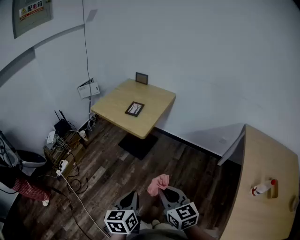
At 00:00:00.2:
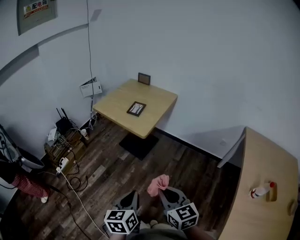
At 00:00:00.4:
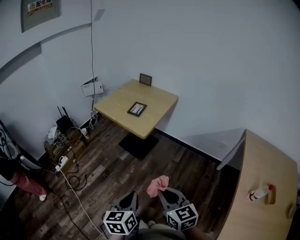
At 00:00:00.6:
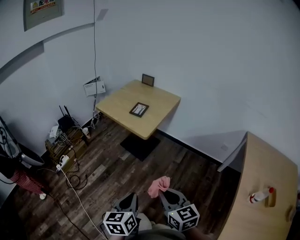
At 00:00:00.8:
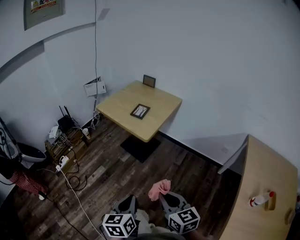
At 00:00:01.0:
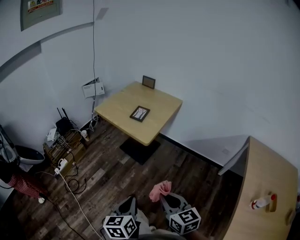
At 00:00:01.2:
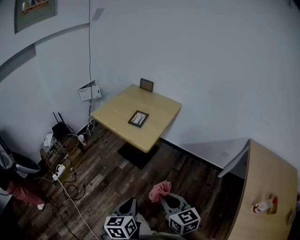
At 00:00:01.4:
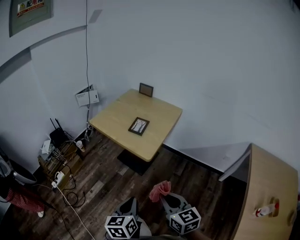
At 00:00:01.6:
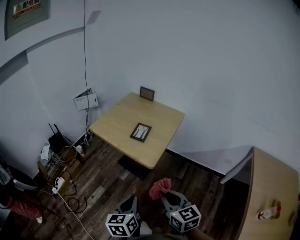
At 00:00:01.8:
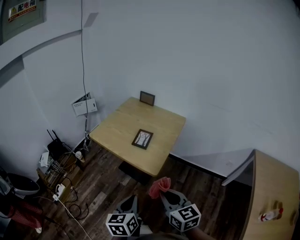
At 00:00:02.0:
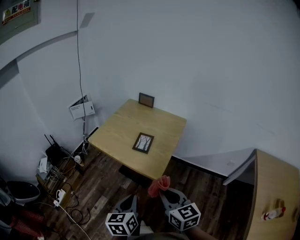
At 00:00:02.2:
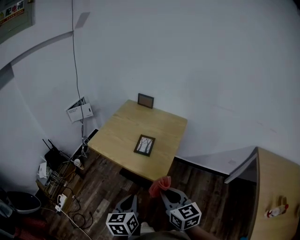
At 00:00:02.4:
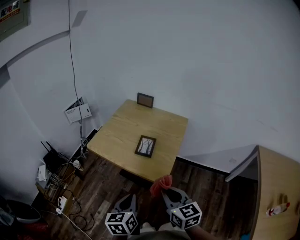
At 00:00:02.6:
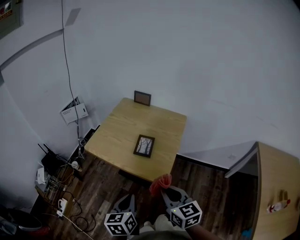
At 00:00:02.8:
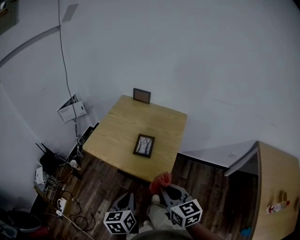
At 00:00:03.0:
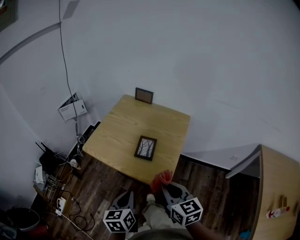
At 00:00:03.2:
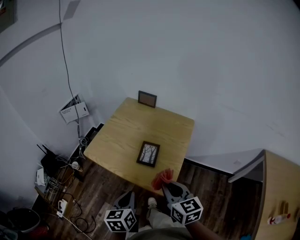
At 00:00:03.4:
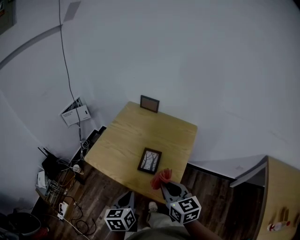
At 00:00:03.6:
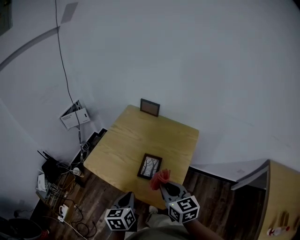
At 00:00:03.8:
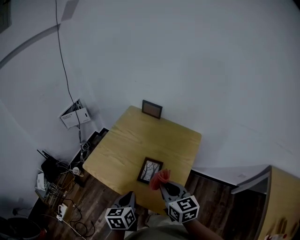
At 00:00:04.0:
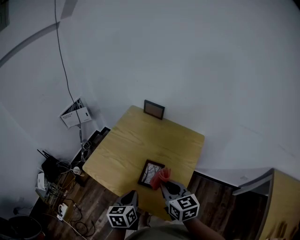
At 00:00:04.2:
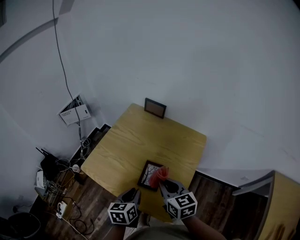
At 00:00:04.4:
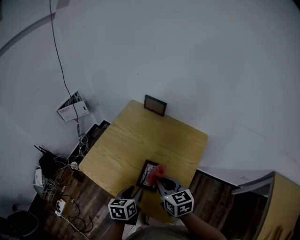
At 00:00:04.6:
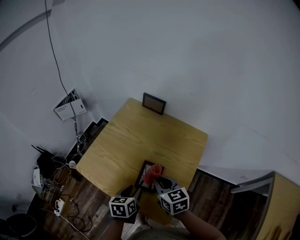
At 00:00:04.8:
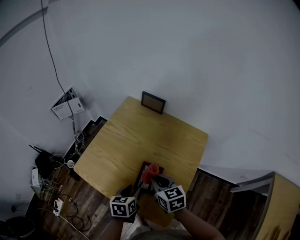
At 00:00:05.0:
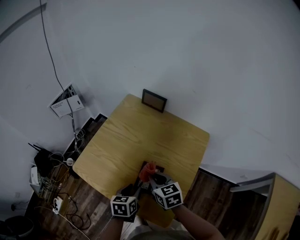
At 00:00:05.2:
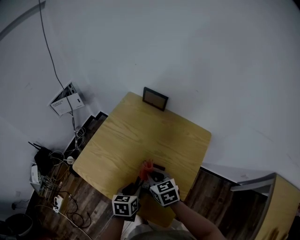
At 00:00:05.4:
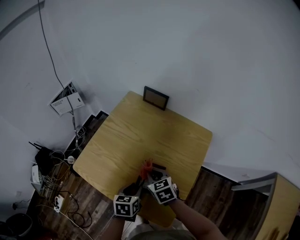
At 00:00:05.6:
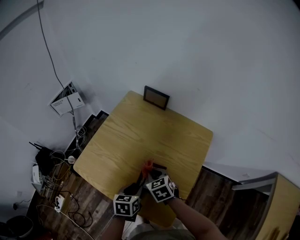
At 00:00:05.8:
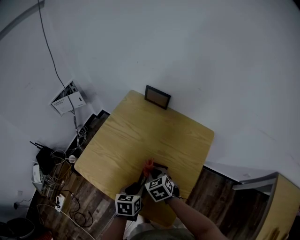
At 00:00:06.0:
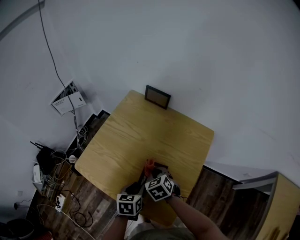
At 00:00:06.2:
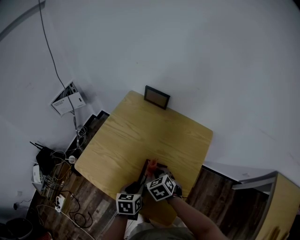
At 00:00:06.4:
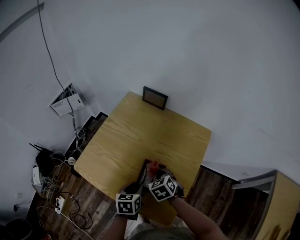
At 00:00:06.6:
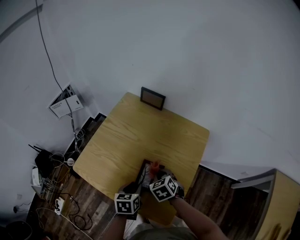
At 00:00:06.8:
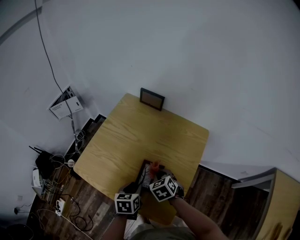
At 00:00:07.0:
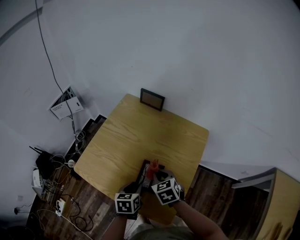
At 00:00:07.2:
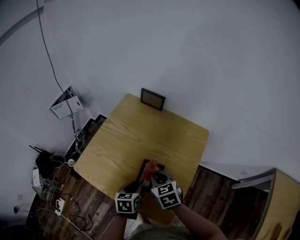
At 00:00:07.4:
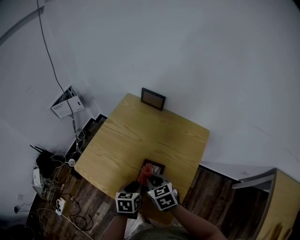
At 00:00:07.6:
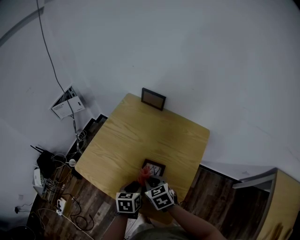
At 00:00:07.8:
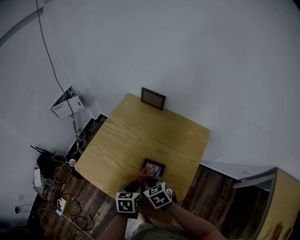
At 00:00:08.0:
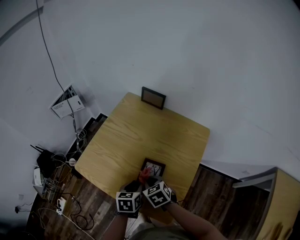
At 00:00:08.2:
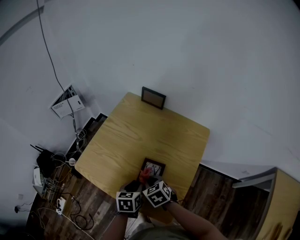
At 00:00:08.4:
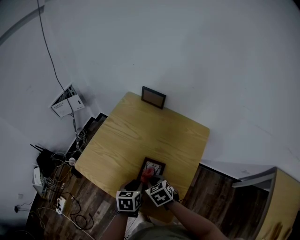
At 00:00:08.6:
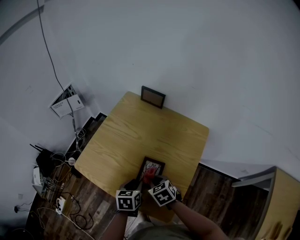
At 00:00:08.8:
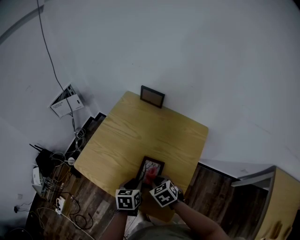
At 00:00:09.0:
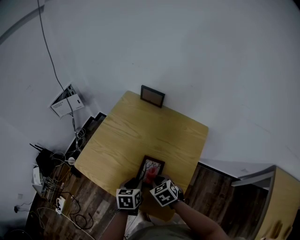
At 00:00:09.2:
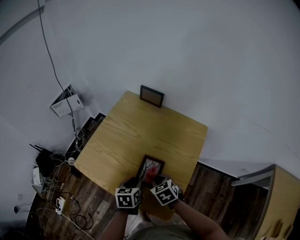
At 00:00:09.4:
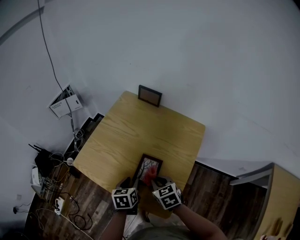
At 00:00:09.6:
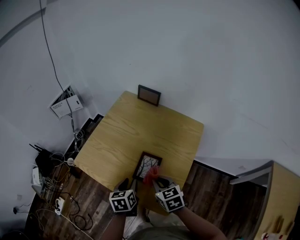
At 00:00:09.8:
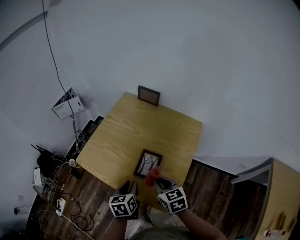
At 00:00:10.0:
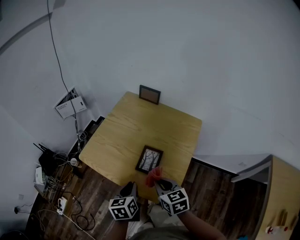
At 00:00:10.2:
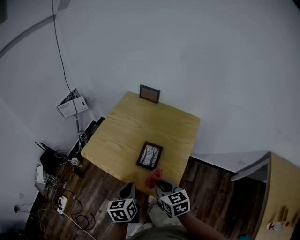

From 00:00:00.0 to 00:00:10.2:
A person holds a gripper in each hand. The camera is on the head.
From 00:00:00.0 to 00:00:01.4: Both grippers move forward, roughly 15 cm.
From 00:00:01.4 to 00:00:03.0: Both grippers travel together forward, about 30 cm.
From 00:00:03.0 to 00:00:04.4: The left gripper travels forward and downward by about 25 cm, and opens its fingers, while the right gripper moves forward, roughly 25 cm.
From 00:00:04.4 to 00:00:05.8: The left gripper is displaced downward by some 5 cm. Meanwhile the right gripper is displaced downward and forward by some 15 cm, and swivels roughly 30 degrees.
From 00:00:05.8 to 00:00:07.2: The right gripper moves upward, about 5 cm.
From 00:00:07.2 to 00:00:08.8: The right gripper is displaced downward by approximately 5 cm.
From 00:00:08.8 to 00:00:10.2: The right gripper goes some 15 cm backward and upward, and changes its angle by some 30 degrees. Meanwhile the left gripper moves backward, upward and to the left, about 15 cm, and closes up.

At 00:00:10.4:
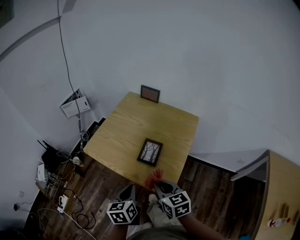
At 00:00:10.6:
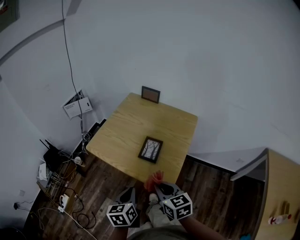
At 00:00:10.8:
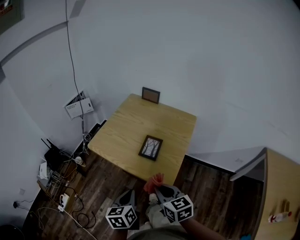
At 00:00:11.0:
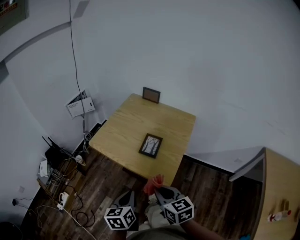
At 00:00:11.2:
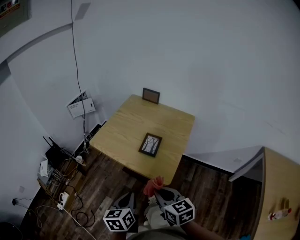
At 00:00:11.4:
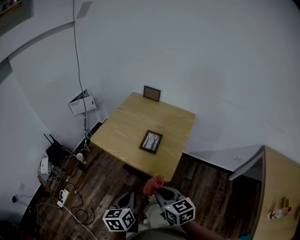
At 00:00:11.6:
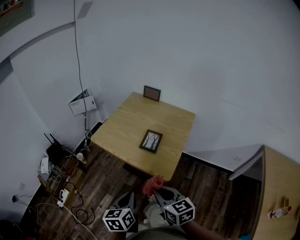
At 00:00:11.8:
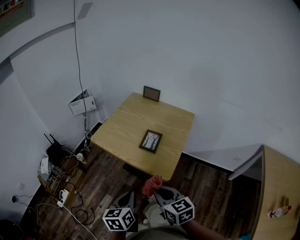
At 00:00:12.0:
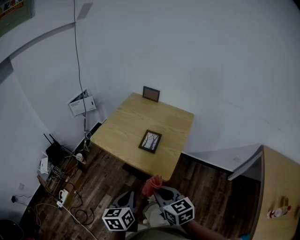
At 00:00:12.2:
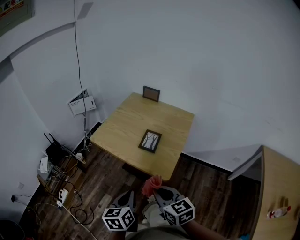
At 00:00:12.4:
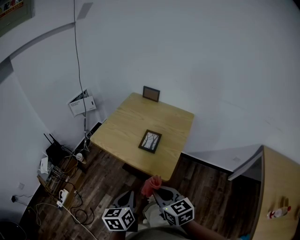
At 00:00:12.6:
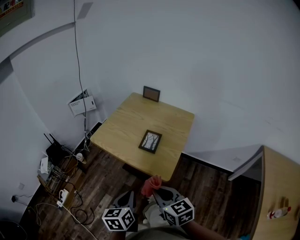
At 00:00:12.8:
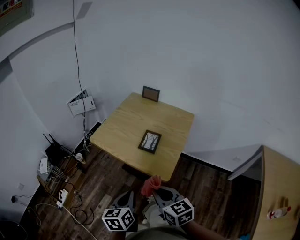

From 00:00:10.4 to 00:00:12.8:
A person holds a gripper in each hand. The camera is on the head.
From 00:00:10.4 to 00:00:11.6: The grippers both shift backward by some 15 cm.
From 00:00:11.6 to 00:00:12.8: Neither gripper changes place.

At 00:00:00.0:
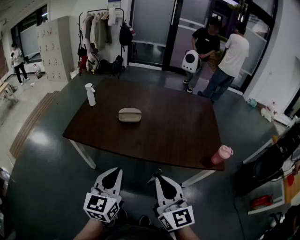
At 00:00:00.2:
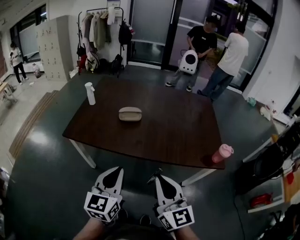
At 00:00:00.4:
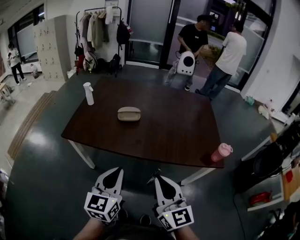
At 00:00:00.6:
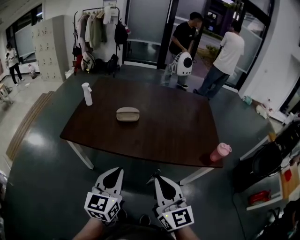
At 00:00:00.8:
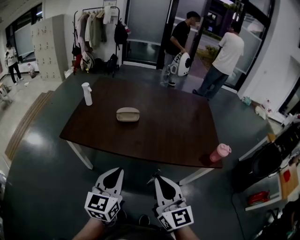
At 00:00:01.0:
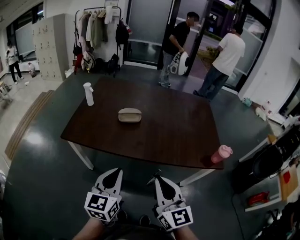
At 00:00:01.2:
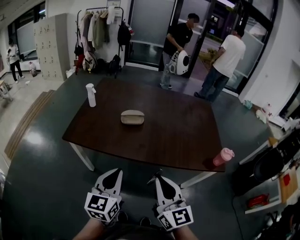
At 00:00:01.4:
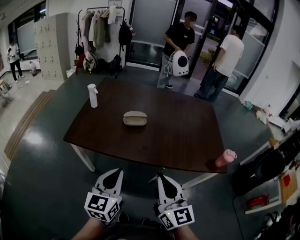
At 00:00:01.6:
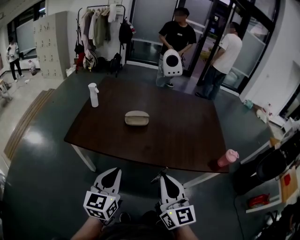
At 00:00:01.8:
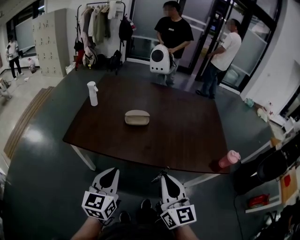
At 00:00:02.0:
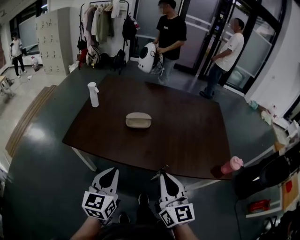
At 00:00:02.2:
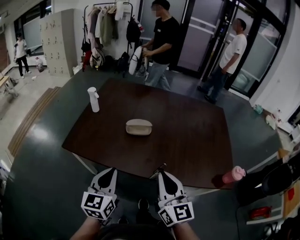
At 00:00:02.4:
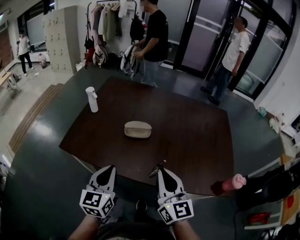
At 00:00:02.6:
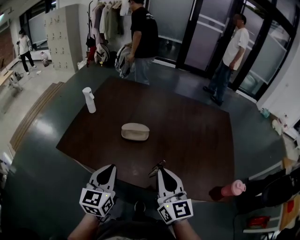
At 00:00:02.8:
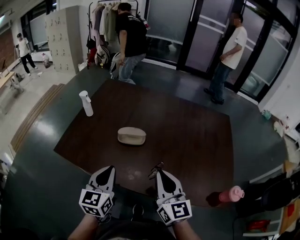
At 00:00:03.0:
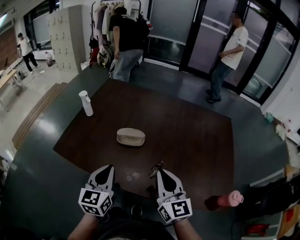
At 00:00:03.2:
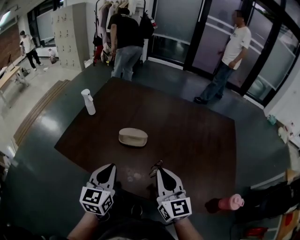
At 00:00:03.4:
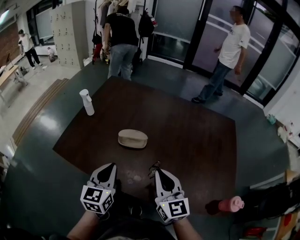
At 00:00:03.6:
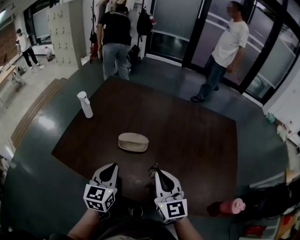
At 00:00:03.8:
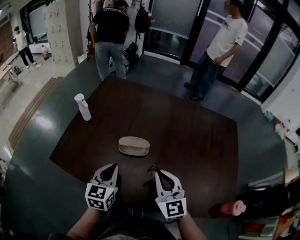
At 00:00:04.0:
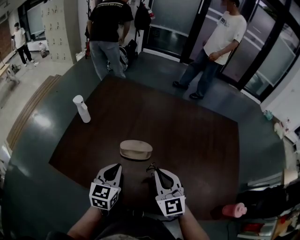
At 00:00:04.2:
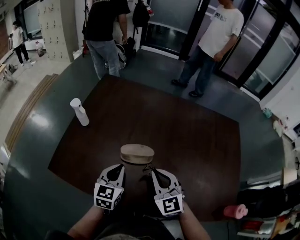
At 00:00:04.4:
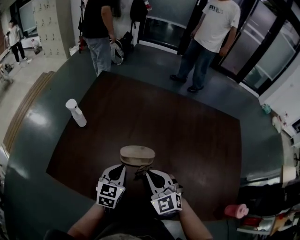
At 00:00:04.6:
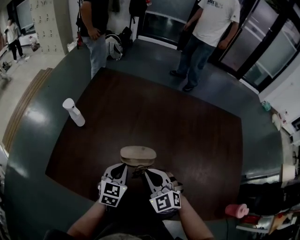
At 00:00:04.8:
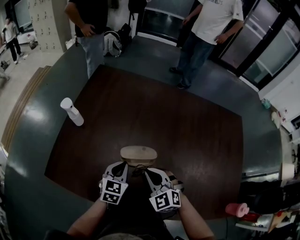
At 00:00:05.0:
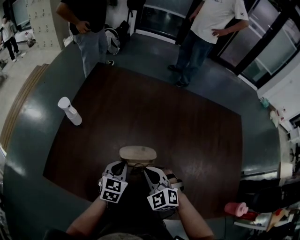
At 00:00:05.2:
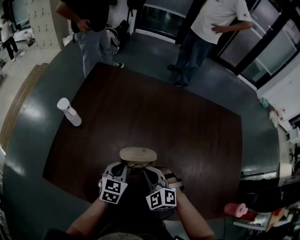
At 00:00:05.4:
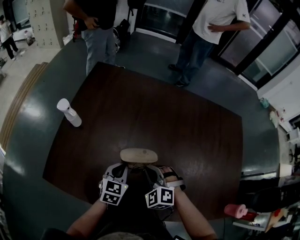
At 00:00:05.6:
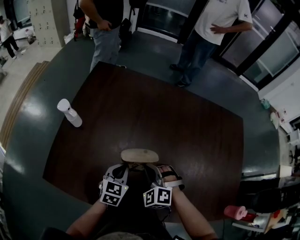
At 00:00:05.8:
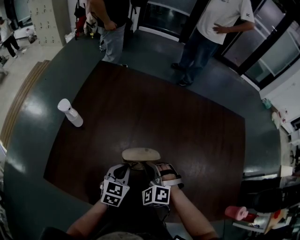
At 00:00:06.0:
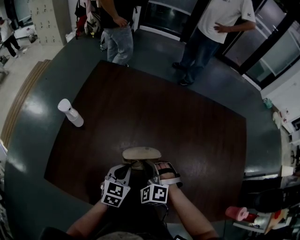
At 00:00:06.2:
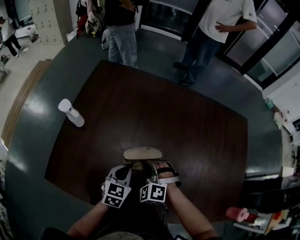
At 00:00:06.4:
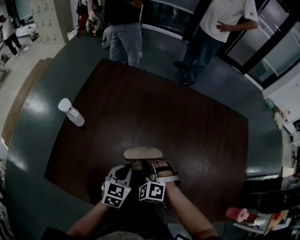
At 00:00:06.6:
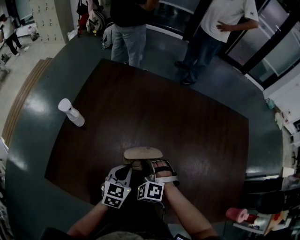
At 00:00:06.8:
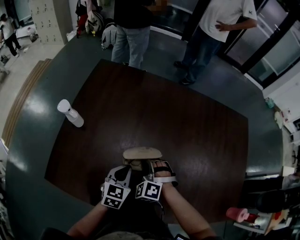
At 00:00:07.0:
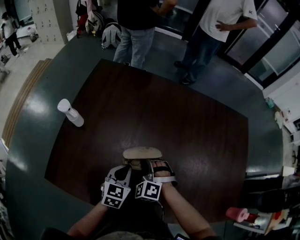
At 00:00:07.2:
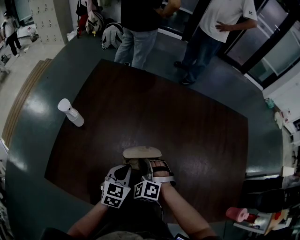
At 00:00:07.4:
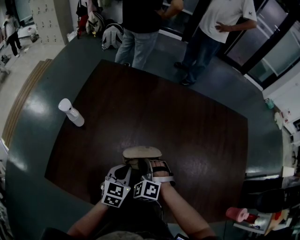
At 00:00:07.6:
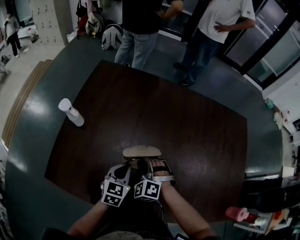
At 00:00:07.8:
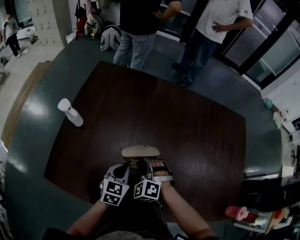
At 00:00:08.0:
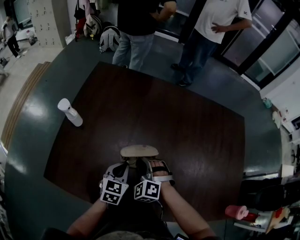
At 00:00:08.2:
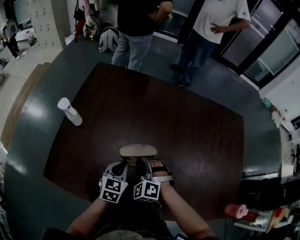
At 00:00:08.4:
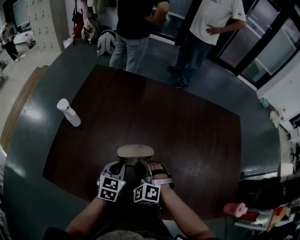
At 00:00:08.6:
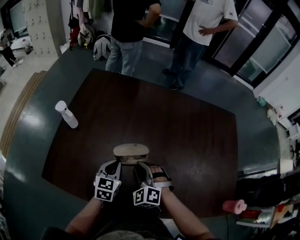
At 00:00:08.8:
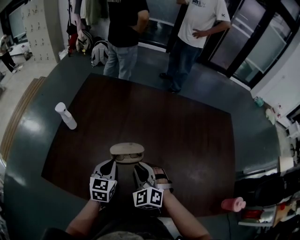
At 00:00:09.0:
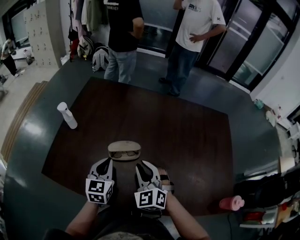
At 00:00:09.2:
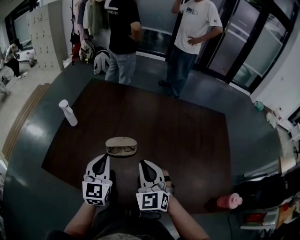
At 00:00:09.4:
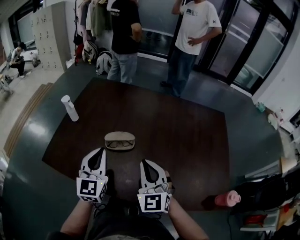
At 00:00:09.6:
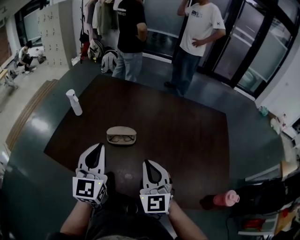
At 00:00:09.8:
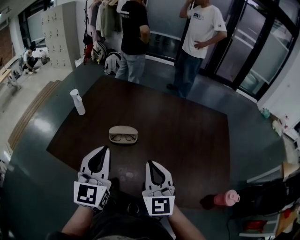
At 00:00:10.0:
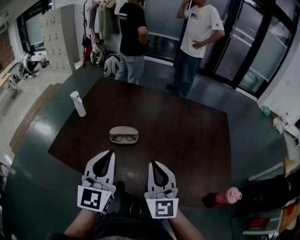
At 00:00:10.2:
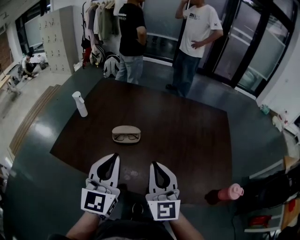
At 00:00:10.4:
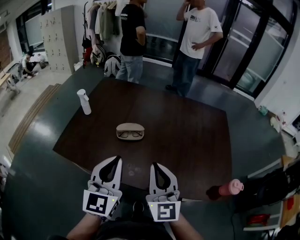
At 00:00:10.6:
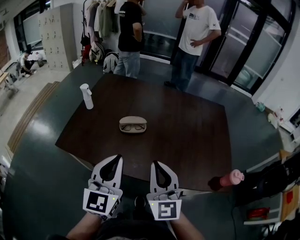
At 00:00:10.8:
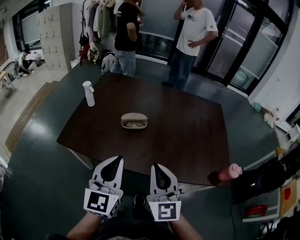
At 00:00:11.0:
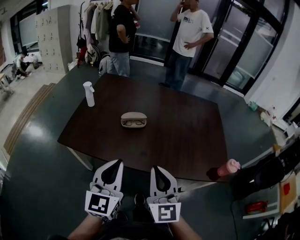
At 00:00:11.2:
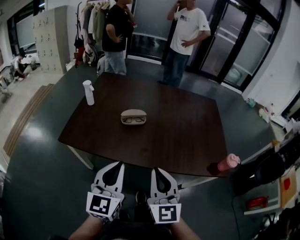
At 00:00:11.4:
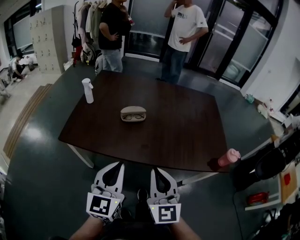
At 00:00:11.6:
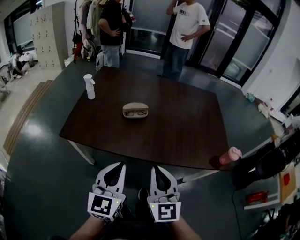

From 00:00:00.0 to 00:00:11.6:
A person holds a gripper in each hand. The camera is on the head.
From 00:00:00.0 to 00:00:01.4: The two grippers go some 5 cm to the left.
From 00:00:01.4 to 00:00:02.8: The grippers both shift forward by some 20 cm.
From 00:00:02.8 to 00:00:04.4: Both grippers travel together forward and downward, roughly 25 cm. The right gripper turns by some 40 degrees.
From 00:00:04.4 to 00:00:05.8: The right gripper shifts about 10 cm downward and forward, and swivels approximately 30 degrees. The left gripper moves roughly 5 cm.
From 00:00:05.8 to 00:00:07.2: The grippers stay close to where they were, moving slightly.
From 00:00:07.2 to 00:00:08.8: The right gripper goes some 10 cm upward, backward and to the right.
From 00:00:08.8 to 00:00:10.2: The right gripper travels upward, backward and to the right by about 30 cm, and tilts its fingers some 40 degrees upward. Meanwhile the left gripper travels upward and backward by approximately 30 cm, and turns by approximately 30 degrees.
From 00:00:10.2 to 00:00:11.6: The right gripper heads backward and to the left, covering roughly 20 cm. The left gripper goes roughly 20 cm backward.
